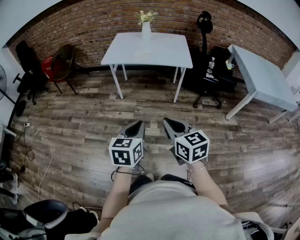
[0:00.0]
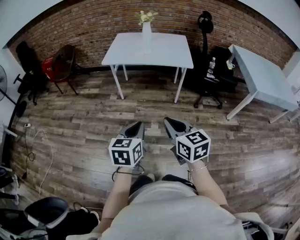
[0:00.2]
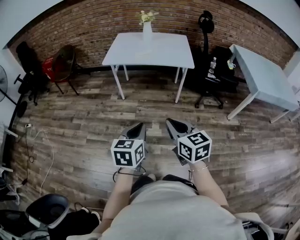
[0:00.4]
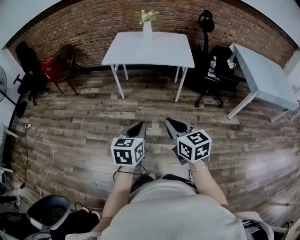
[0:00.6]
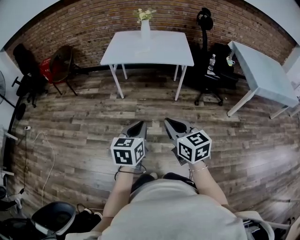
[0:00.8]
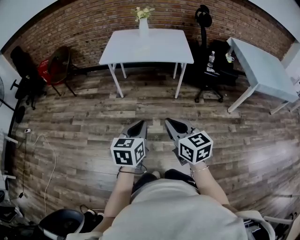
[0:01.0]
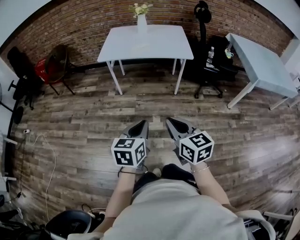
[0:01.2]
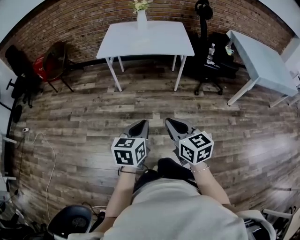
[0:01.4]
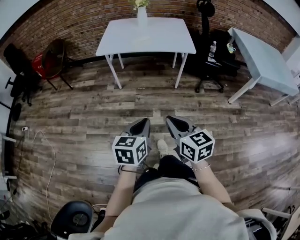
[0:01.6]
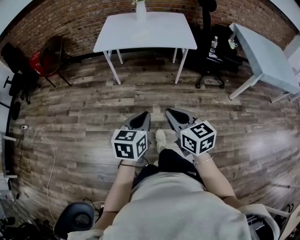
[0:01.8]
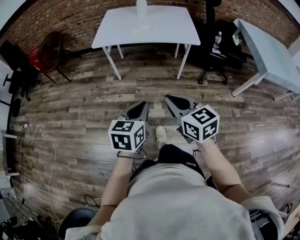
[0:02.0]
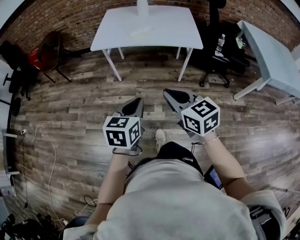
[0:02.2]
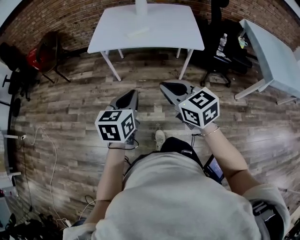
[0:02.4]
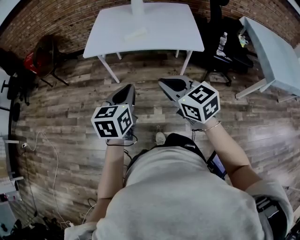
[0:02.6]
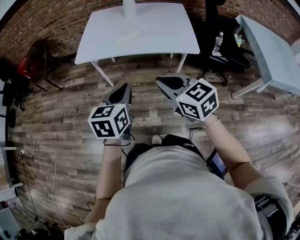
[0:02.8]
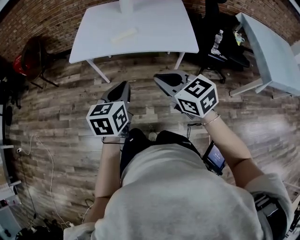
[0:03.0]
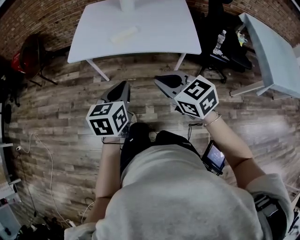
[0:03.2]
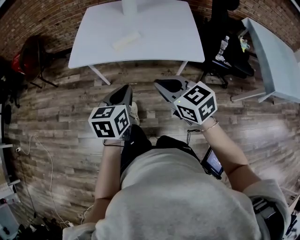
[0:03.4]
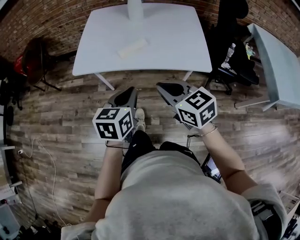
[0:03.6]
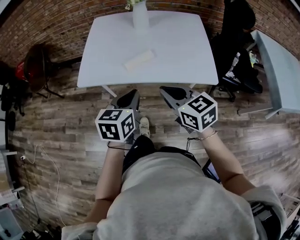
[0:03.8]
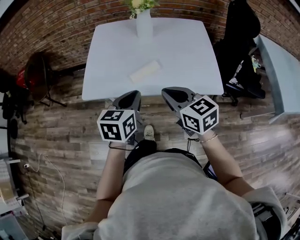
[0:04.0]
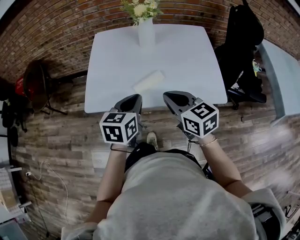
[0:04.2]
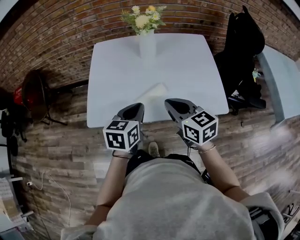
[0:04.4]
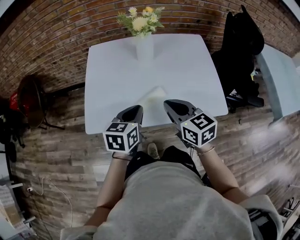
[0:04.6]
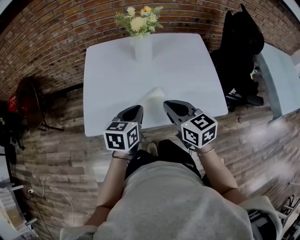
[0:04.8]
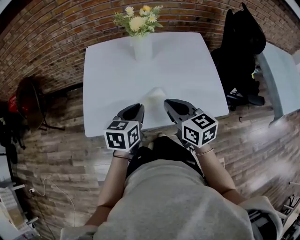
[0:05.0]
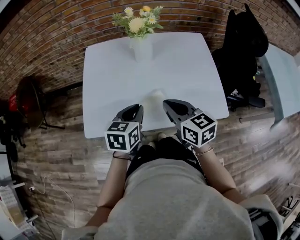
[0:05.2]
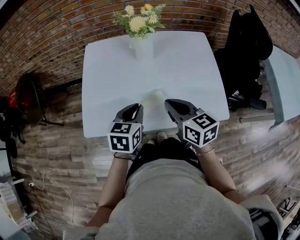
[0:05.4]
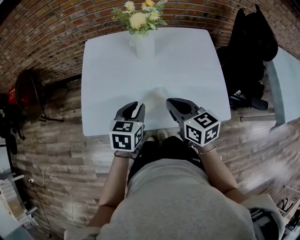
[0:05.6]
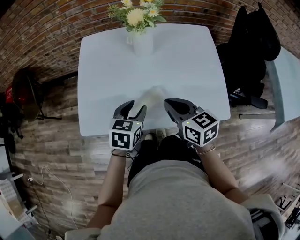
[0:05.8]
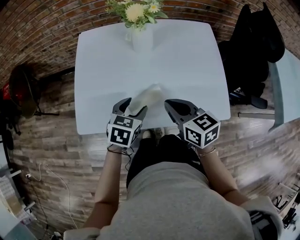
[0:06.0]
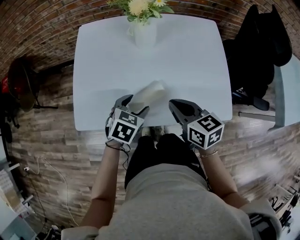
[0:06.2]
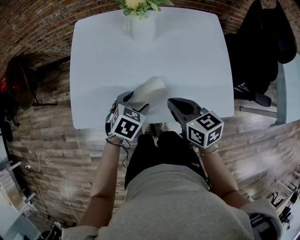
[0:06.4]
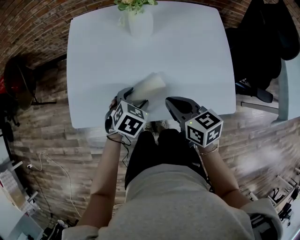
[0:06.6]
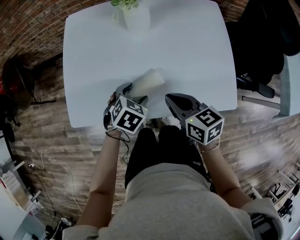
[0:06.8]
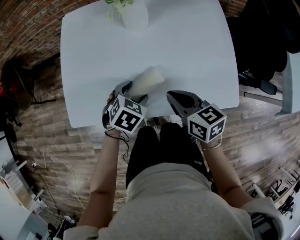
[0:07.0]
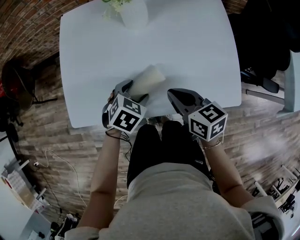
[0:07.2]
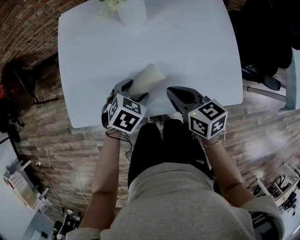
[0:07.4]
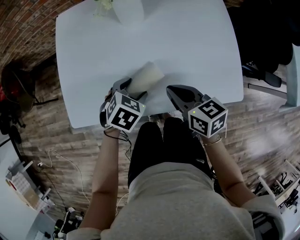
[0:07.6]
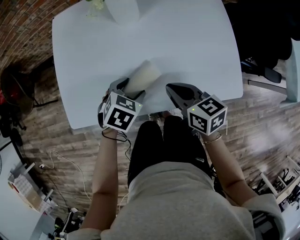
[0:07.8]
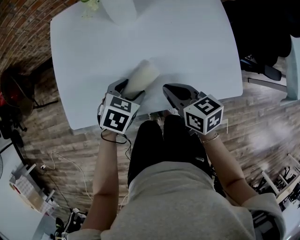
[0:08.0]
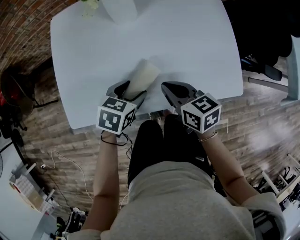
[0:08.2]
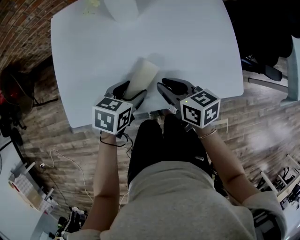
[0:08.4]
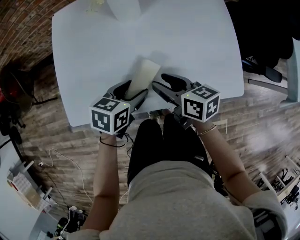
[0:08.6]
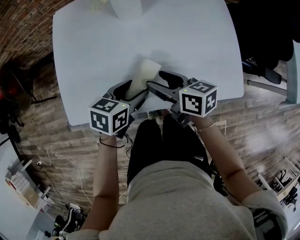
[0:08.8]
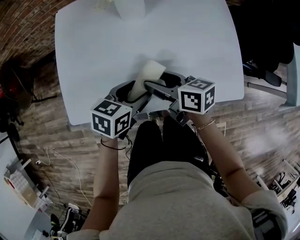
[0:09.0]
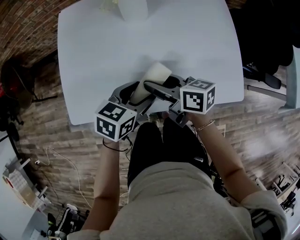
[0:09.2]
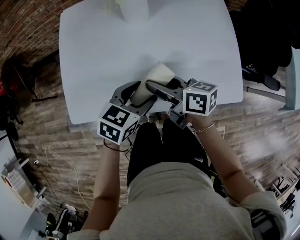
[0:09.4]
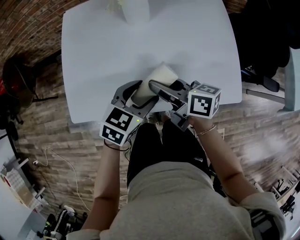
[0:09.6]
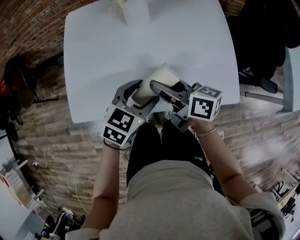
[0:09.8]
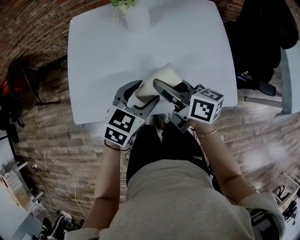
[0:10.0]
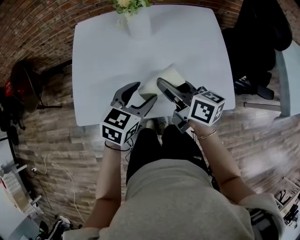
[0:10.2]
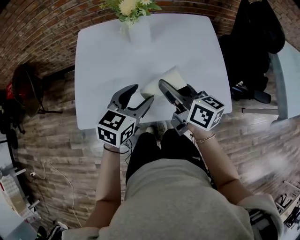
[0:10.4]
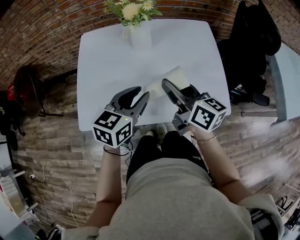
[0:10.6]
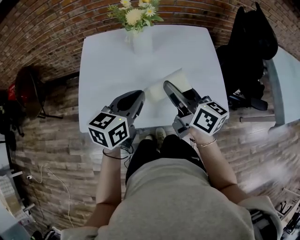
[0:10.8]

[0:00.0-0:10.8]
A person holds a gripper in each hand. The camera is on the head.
0:00.0 to 0:01.6: The right gripper changes place by about 5 cm. Meanwhile the left gripper changes place by roughly 5 cm.
0:01.6 to 0:03.0: Both grippers move forward, some 35 cm. The right gripper rotates some 20 degrees.
0:03.0 to 0:04.6: The two grippers go roughly 35 cm forward. The right gripper swivels approximately 20 degrees.
0:04.6 to 0:06.2: The grippers both shift downward and forward by some 10 cm. The left gripper rotates some 30 degrees, and opens up.
0:06.2 to 0:07.8: Both grippers move downward, some 5 cm.
0:07.8 to 0:09.2: The left gripper travels upward by approximately 5 cm, and changes its angle by roughly 30 degrees. Meanwhile the right gripper heads to the left, covering approximately 5 cm, swivels about 20 degrees, and opens its fingers.
0:09.2 to 0:10.8: The grippers both shift upward by about 15 cm. The left gripper changes its angle by approximately 30 degrees, and closes; the right gripper swivels about 30 degrees.

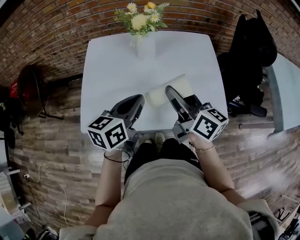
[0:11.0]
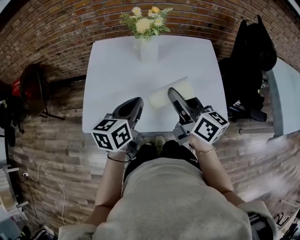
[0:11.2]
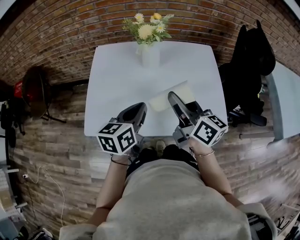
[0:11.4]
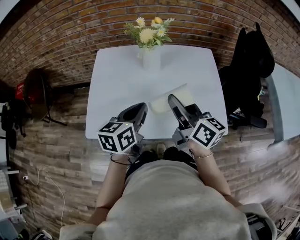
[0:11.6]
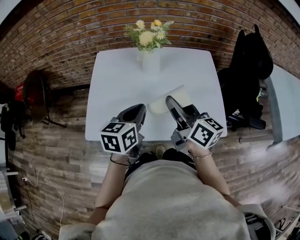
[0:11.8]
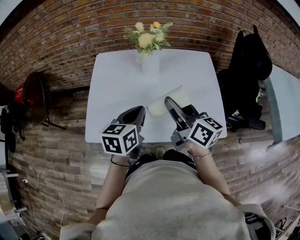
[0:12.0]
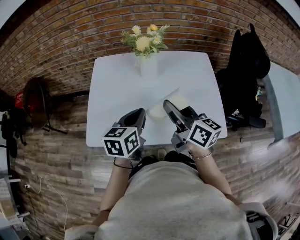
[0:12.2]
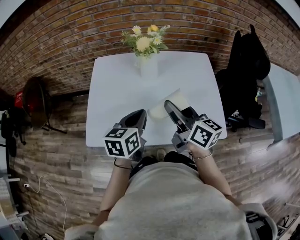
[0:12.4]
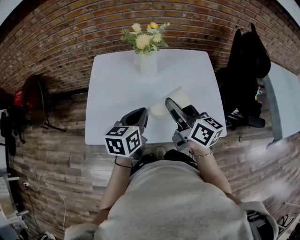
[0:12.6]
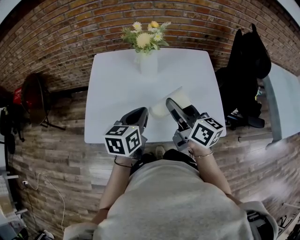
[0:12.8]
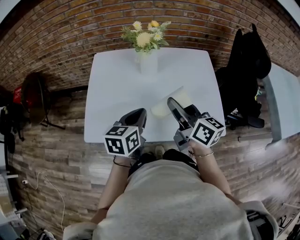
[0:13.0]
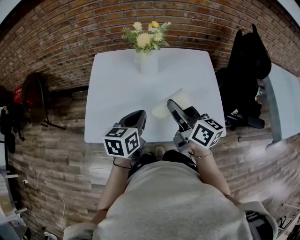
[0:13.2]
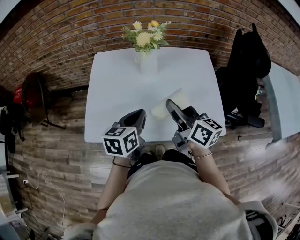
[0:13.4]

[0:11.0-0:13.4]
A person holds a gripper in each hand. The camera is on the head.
0:11.0 to 0:13.4: There are only small adjustments of the grippers.

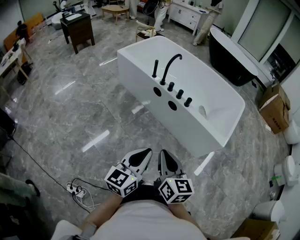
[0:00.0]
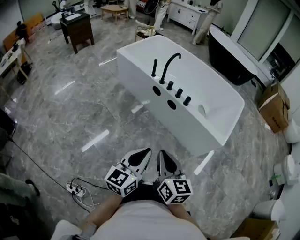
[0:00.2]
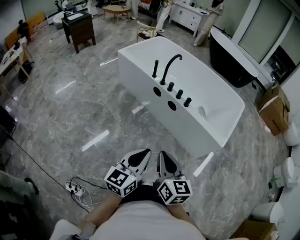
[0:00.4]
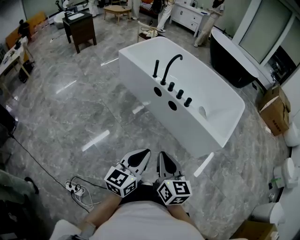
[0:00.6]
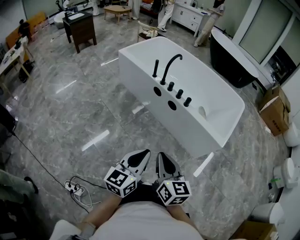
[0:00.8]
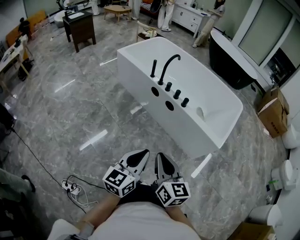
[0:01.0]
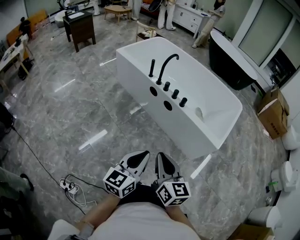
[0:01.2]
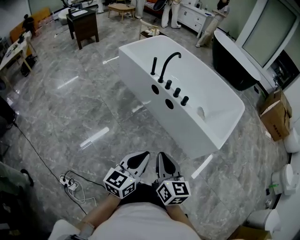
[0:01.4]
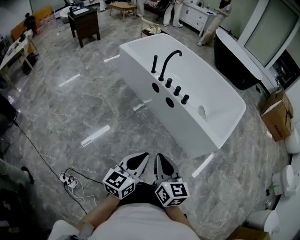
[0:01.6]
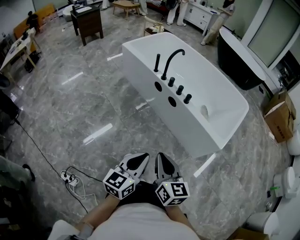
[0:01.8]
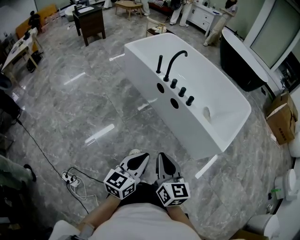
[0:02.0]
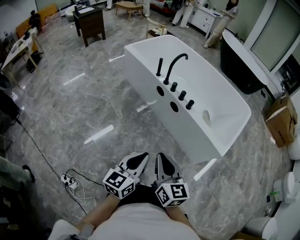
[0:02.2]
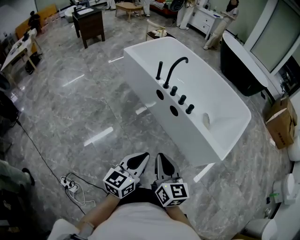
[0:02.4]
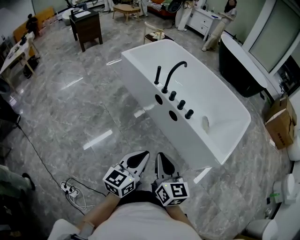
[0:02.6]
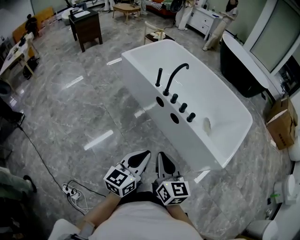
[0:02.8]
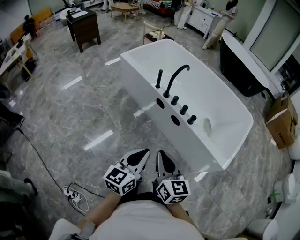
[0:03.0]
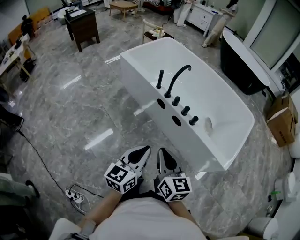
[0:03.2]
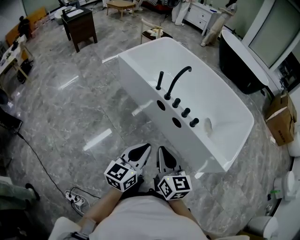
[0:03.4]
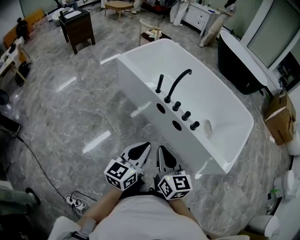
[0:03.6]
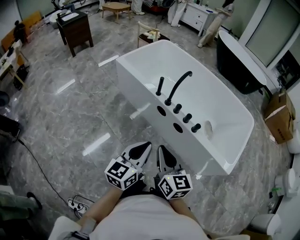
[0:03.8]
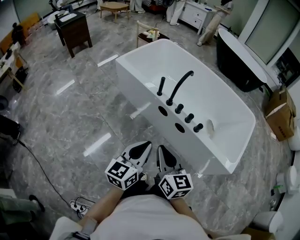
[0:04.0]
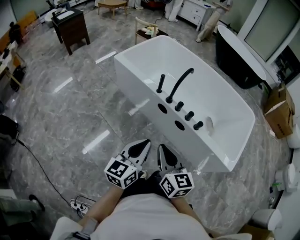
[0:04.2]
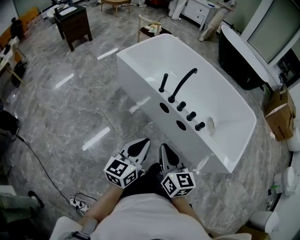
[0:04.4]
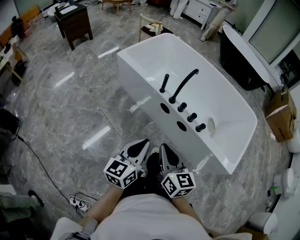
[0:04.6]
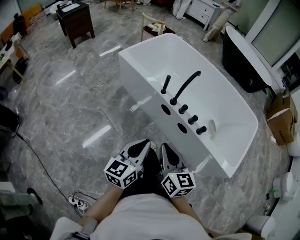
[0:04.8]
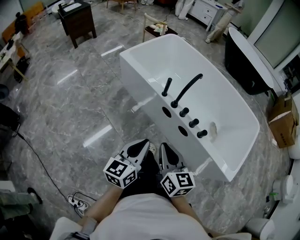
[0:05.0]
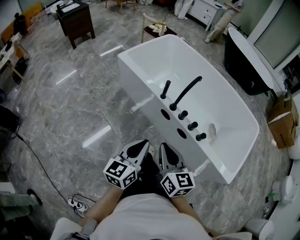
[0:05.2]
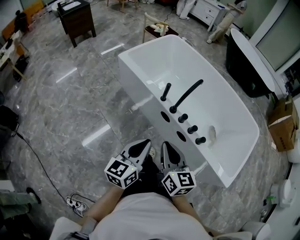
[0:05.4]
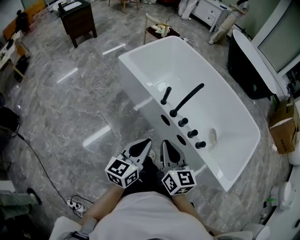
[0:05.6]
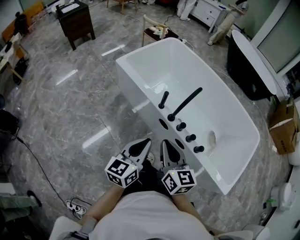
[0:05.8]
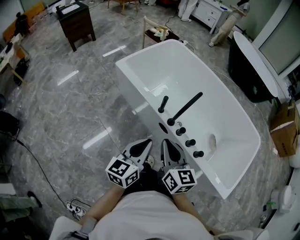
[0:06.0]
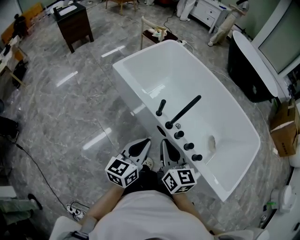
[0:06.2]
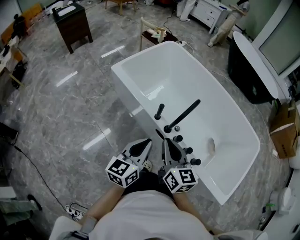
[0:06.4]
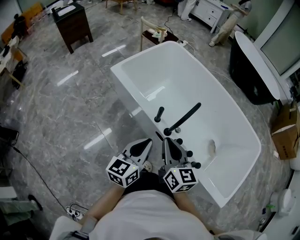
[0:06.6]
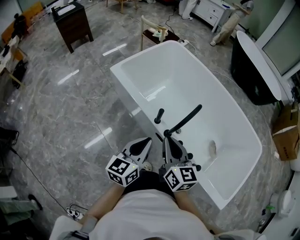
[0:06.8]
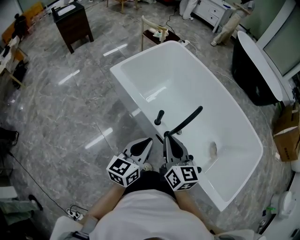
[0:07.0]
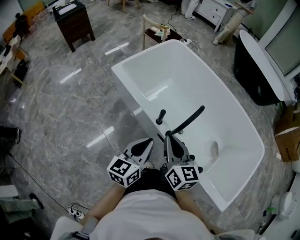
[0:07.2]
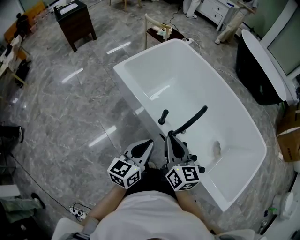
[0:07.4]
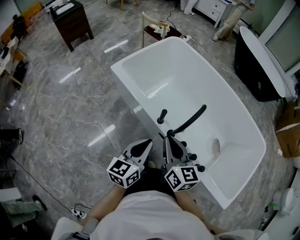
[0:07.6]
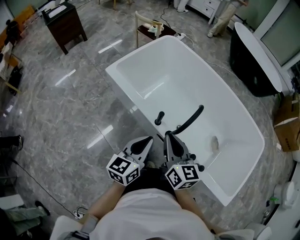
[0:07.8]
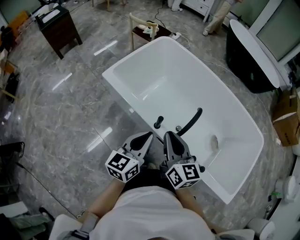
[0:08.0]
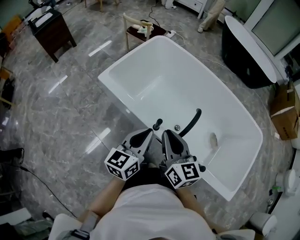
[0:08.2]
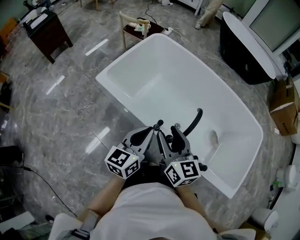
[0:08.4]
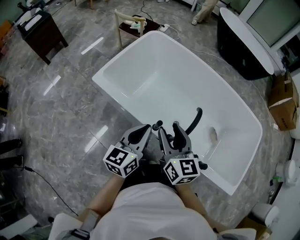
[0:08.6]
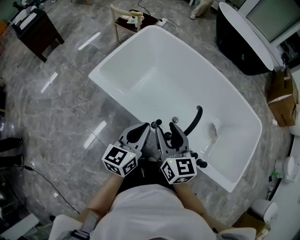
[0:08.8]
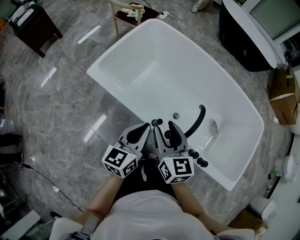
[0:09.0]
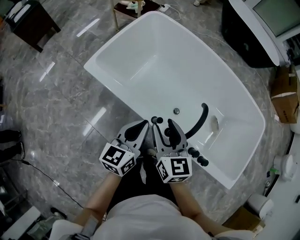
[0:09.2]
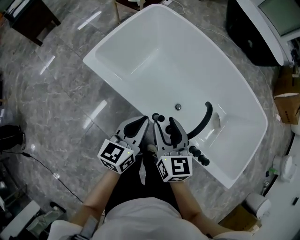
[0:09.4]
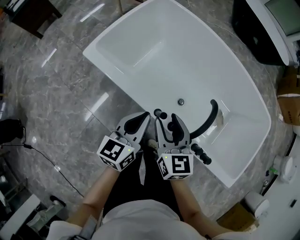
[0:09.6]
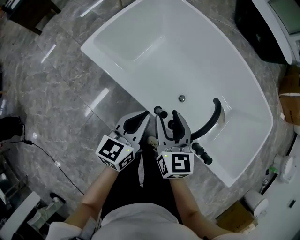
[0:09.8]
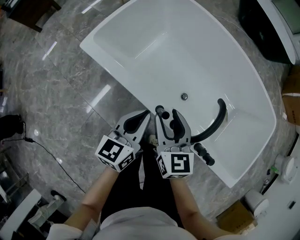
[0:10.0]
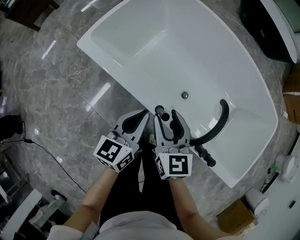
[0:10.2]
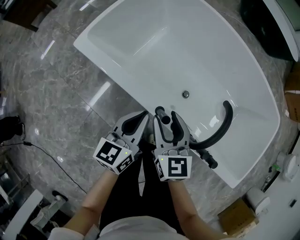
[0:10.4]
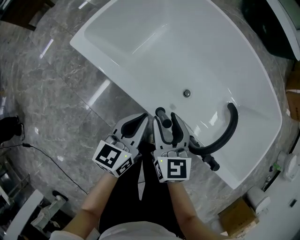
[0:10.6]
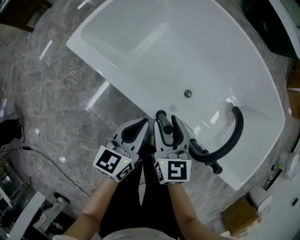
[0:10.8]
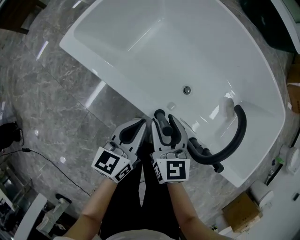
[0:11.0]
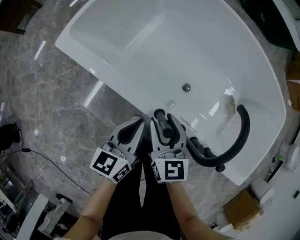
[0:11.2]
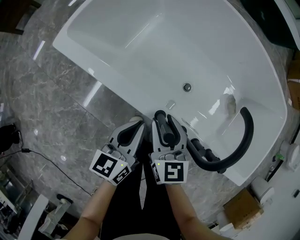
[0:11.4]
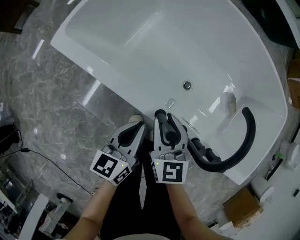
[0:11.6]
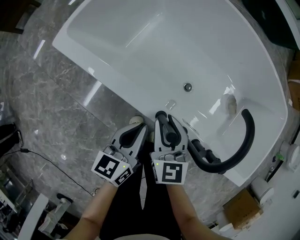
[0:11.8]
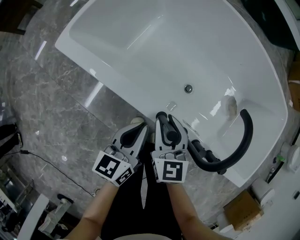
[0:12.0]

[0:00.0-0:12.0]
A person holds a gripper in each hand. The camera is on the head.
0:00.0 to 0:01.6: Both grippers travel together to the right, about 5 cm.
0:01.6 to 0:03.0: The grippers both shift forward by some 15 cm.
0:03.0 to 0:04.4: Both grippers travel together forward and to the left, approximately 15 cm.
0:04.4 to 0:06.0: Both grippers move forward, roughly 20 cm.
0:06.0 to 0:07.6: The grippers both shift forward by approximately 10 cm.
0:07.6 to 0:09.0: The two grippers go approximately 15 cm forward. The right gripper opens its fingers.
0:09.0 to 0:10.4: The two grippers go about 10 cm downward.
0:10.4 to 0:12.0: The two grippers go approximately 10 cm downward.
